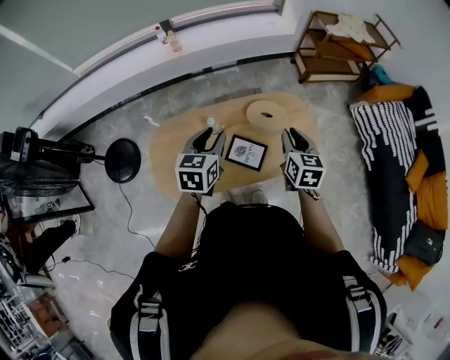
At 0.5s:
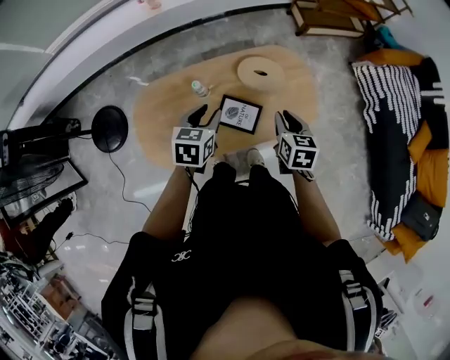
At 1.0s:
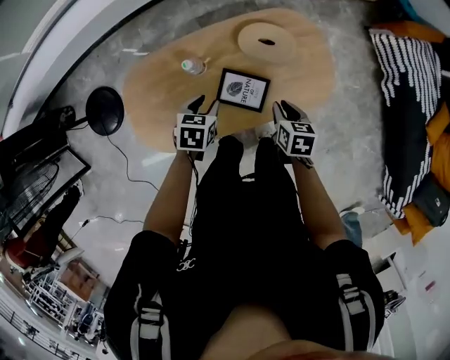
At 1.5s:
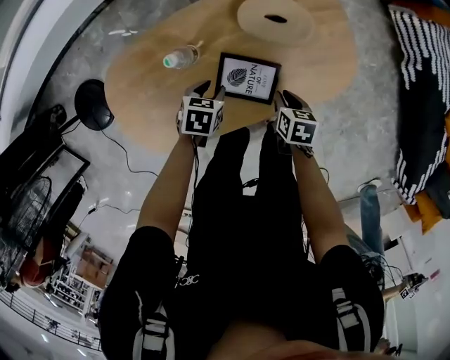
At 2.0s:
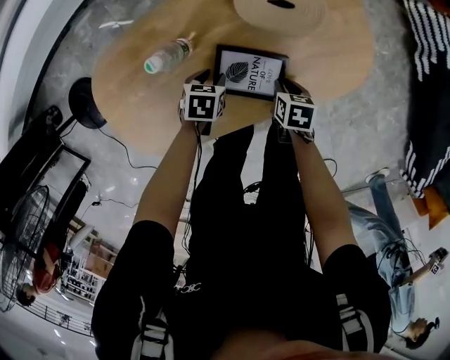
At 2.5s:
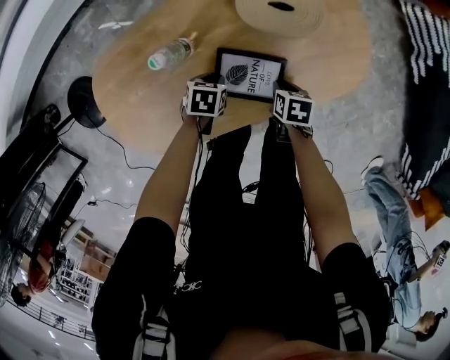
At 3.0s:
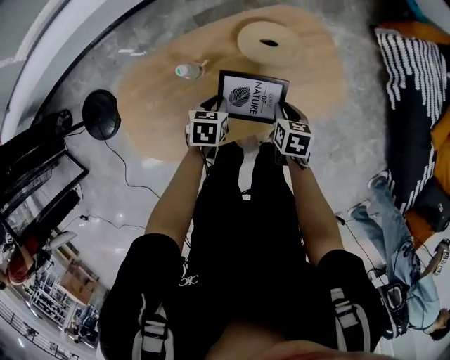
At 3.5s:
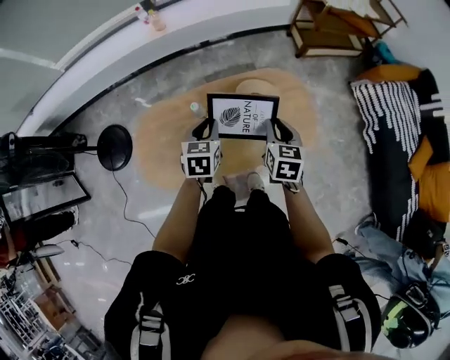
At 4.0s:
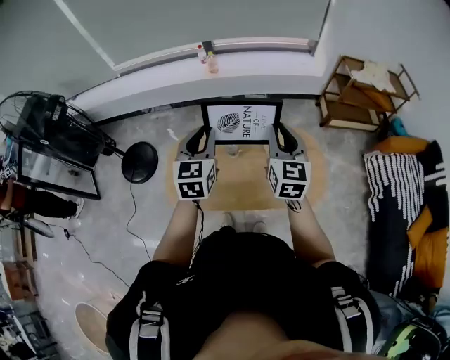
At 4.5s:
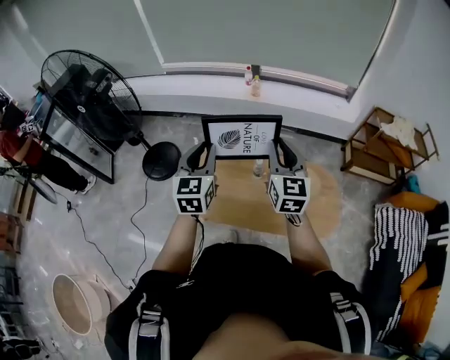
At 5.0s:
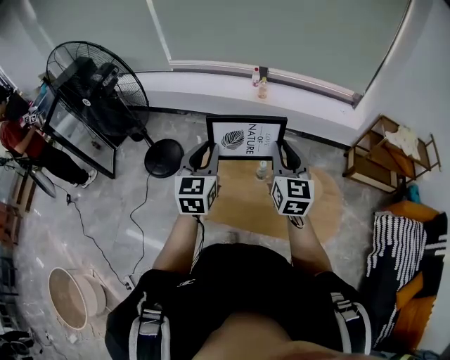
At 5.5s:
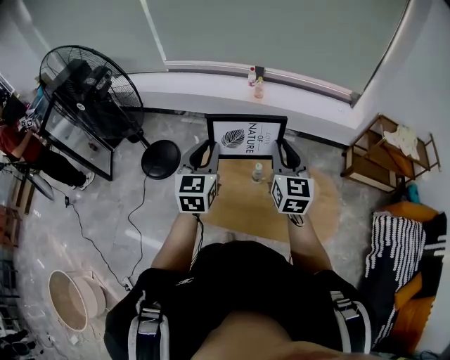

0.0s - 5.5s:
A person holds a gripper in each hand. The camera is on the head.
0.0s - 2.0s: The two grippers go approximately 60 cm downward. The left gripper tilts its fingers approximately 40 degrees downward; the right gripper points its fingers approximately 40 degrees further downward.
2.0s - 3.5s: Both grippers move upward, roughly 50 cm. The right gripper points its fingers approximately 30 degrees further upward. Meanwhile the left gripper angles its fingers upward, by approximately 30 degrees.
3.5s - 5.5s: The two grippers go roughly 30 cm upward. The right gripper points its fingers some 30 degrees further upward. Meanwhile the left gripper swivels roughly 40 degrees.

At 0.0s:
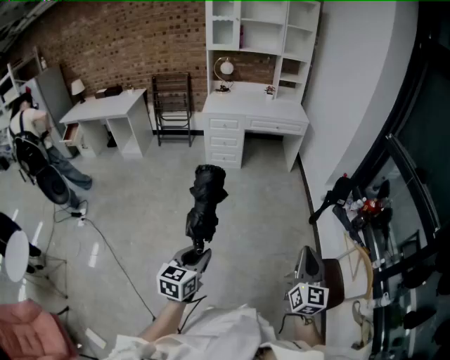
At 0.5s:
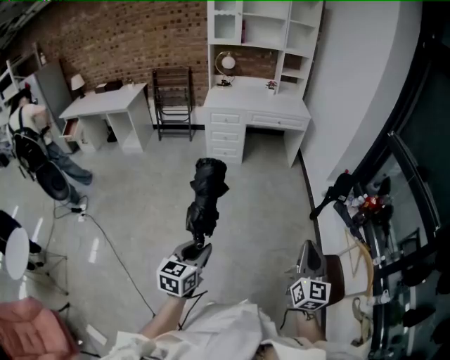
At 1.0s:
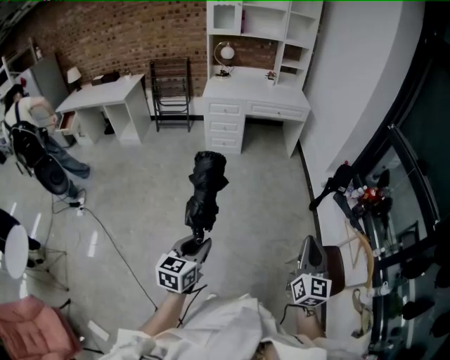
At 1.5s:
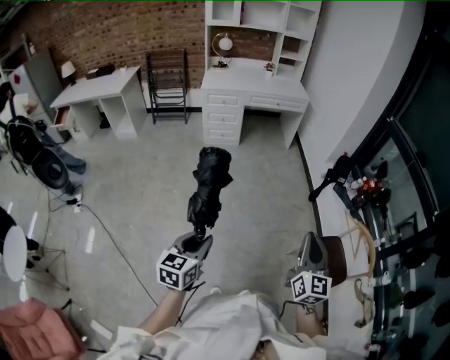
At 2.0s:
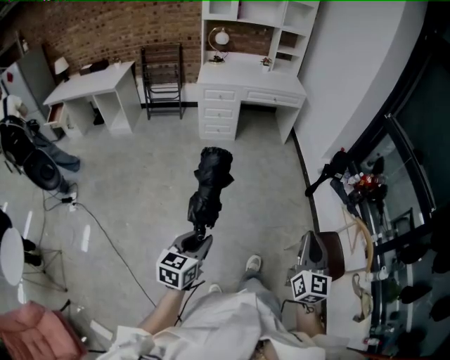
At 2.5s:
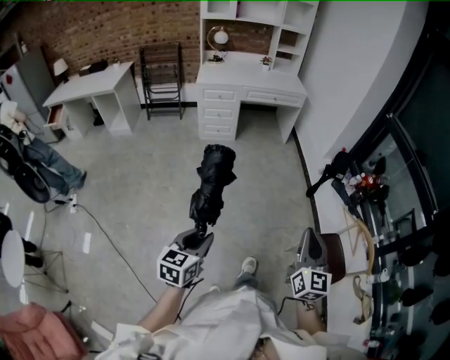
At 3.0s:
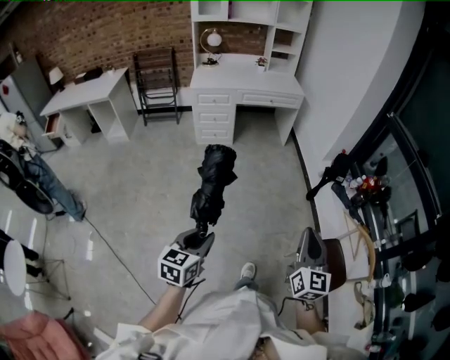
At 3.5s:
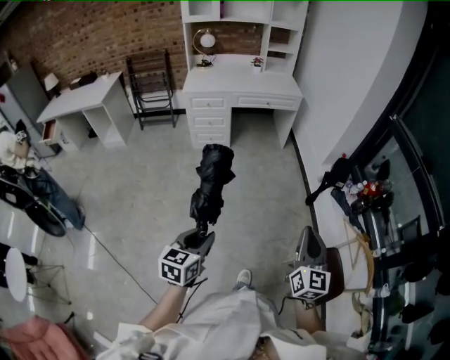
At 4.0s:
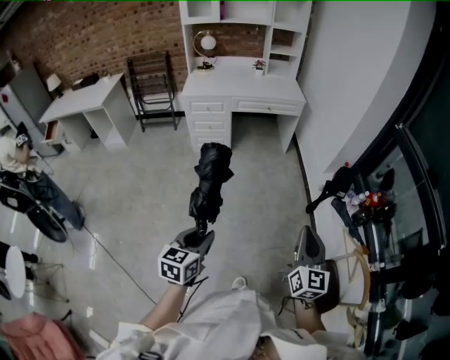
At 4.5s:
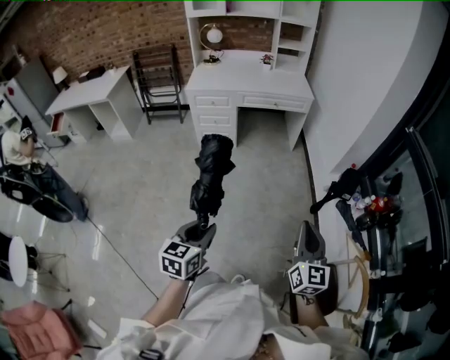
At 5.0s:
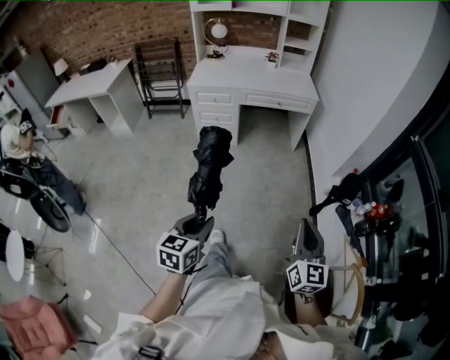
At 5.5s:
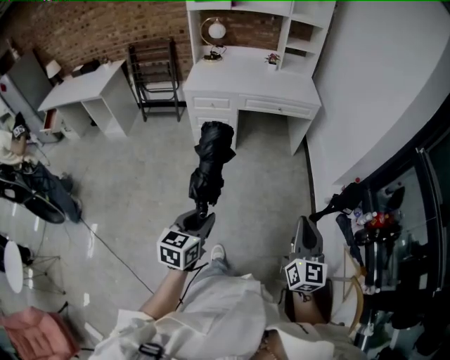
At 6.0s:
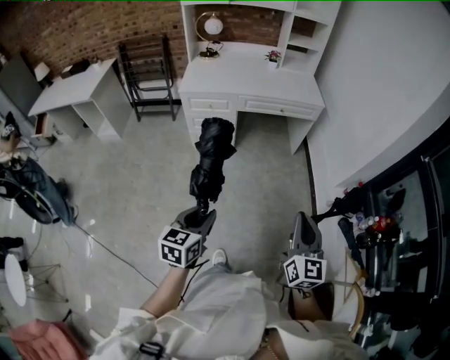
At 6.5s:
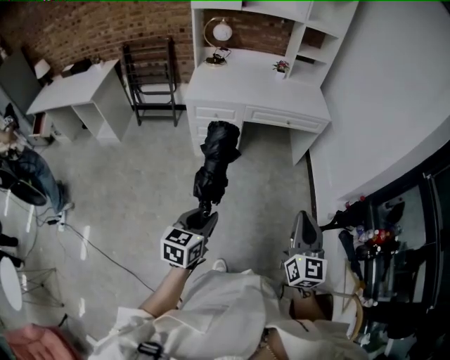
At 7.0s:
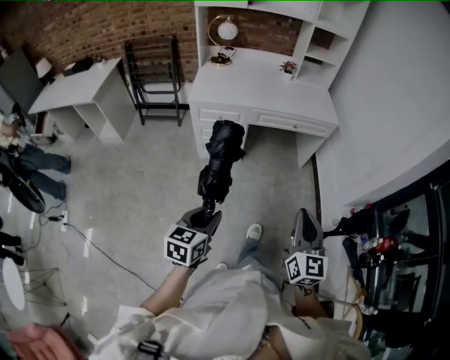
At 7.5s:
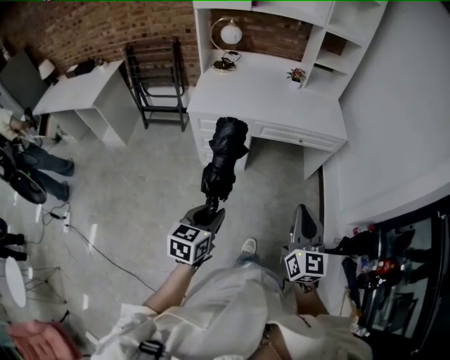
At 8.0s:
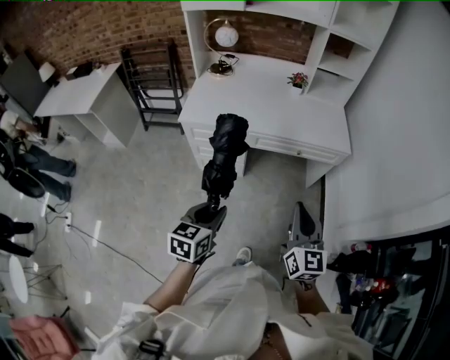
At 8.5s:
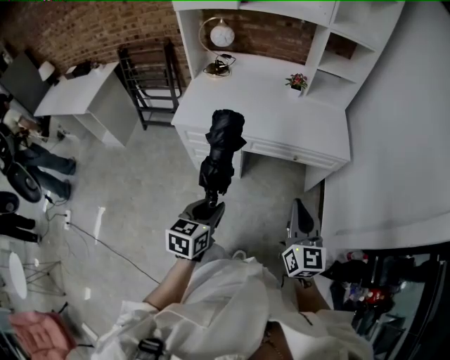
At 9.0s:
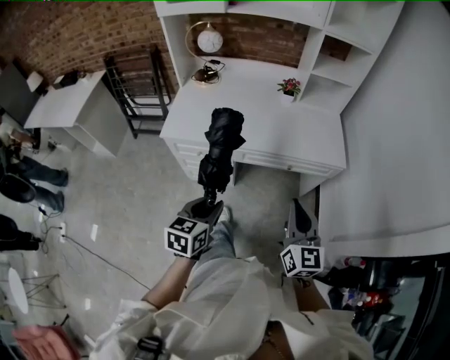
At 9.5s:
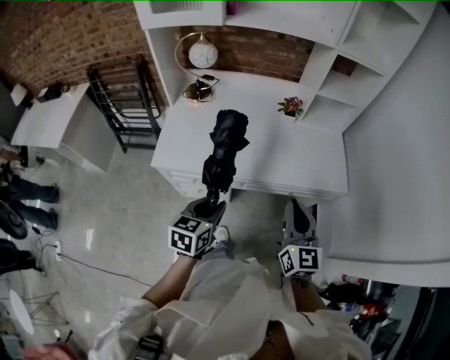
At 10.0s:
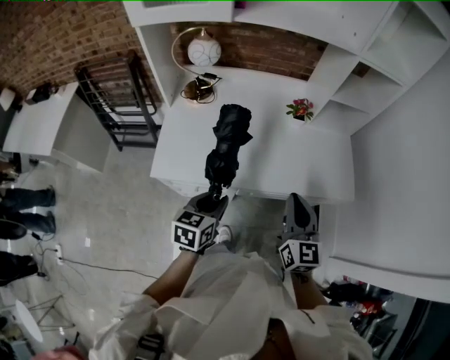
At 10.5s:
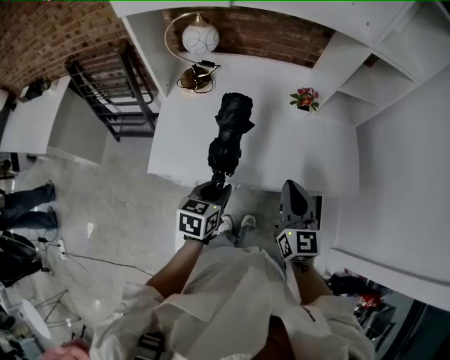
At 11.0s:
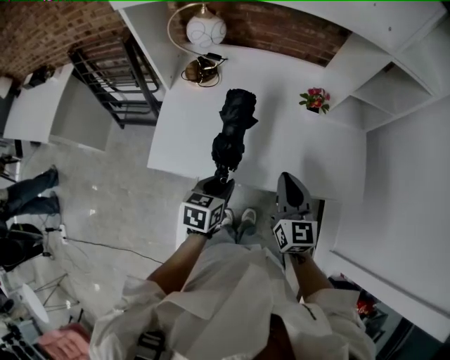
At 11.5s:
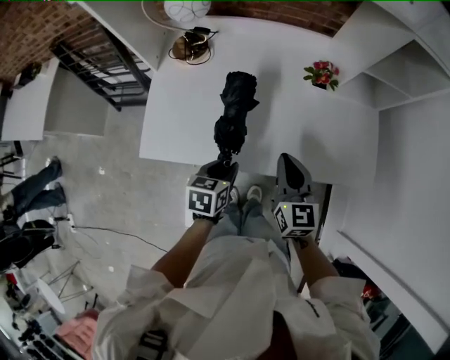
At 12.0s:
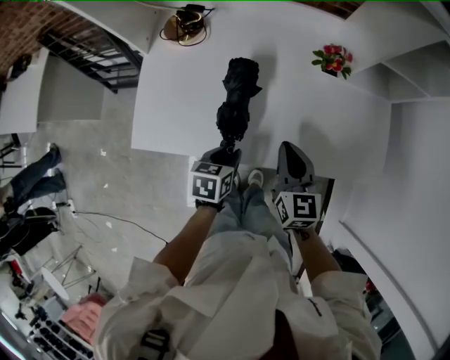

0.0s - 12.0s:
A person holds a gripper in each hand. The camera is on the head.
0.0s - 2.0s: The two grippers go some 5 cm to the left.
2.0s - 4.0s: Both grippers travel together forward, approximately 30 cm.
4.0s - 6.0s: The right gripper shifts roughly 30 cm forward and to the left, while the left gripper heads forward, covering roughly 30 cm.
6.0s - 8.0s: The grippers both shift forward by about 40 cm.
8.0s - 10.0s: The two grippers travel together, forward, approximately 40 cm.
10.0s - 12.0s: The two grippers go about 25 cm downward and forward. The left gripper turns by some 20 degrees.

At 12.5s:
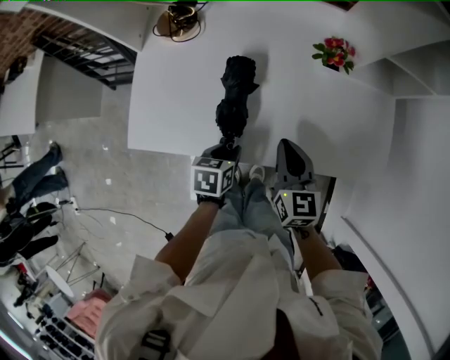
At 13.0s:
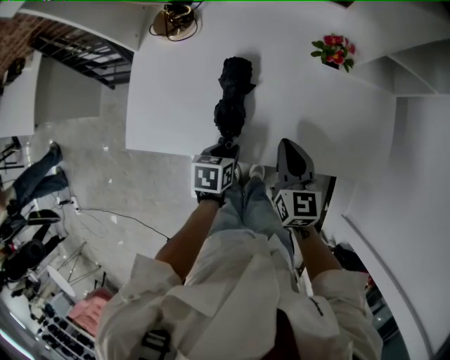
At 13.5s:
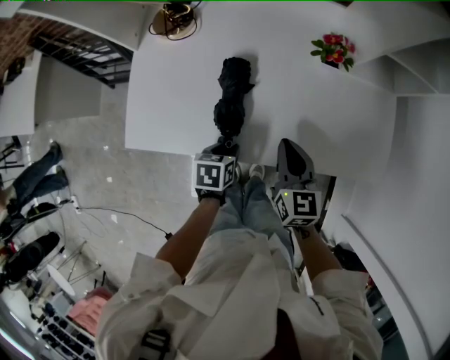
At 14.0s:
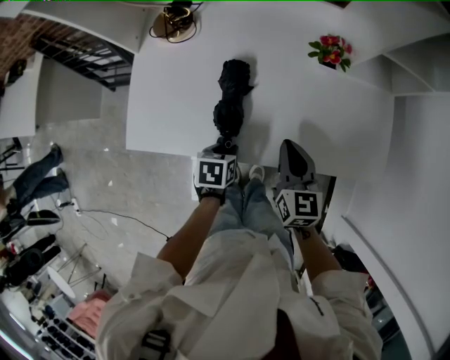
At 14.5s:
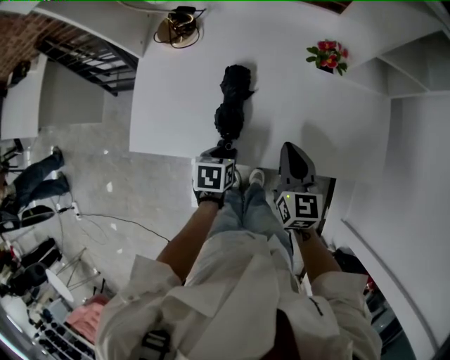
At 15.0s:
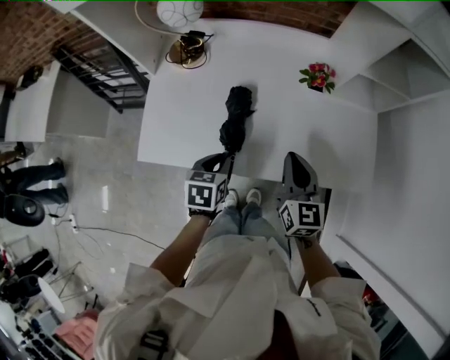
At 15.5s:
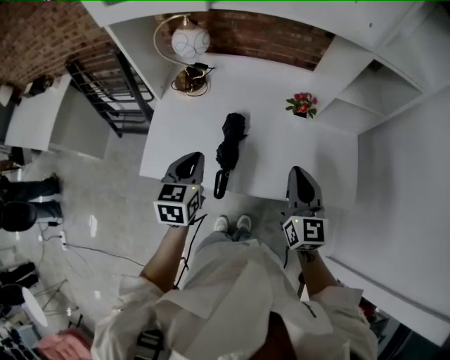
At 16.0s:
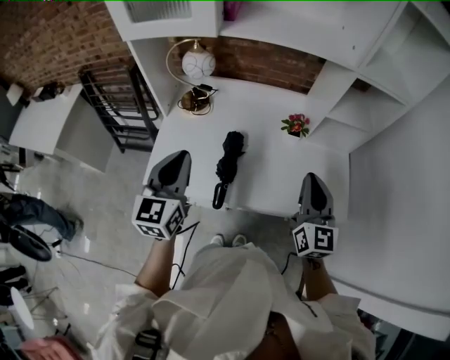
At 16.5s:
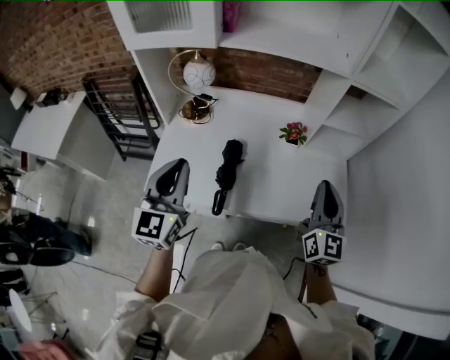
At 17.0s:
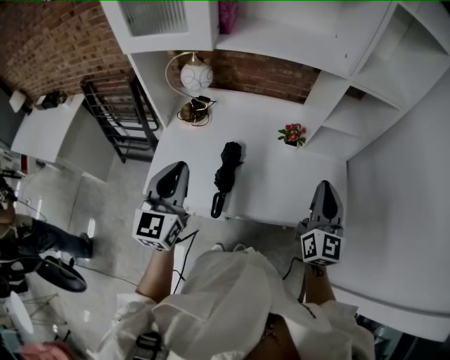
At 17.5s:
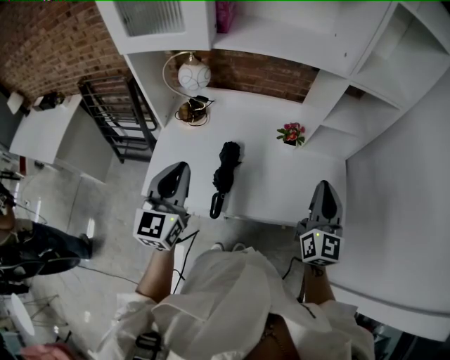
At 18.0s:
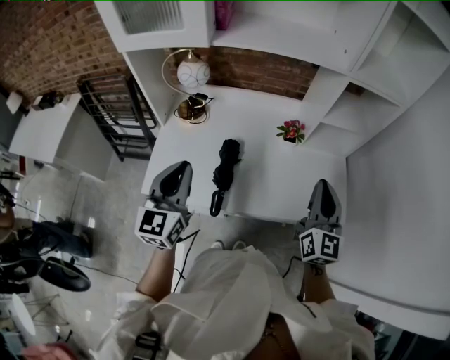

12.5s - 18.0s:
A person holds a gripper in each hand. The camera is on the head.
12.5s - 14.5s: The grippers move only a little.
14.5s - 16.0s: The right gripper travels upward by approximately 25 cm, and swivels about 20 degrees; the left gripper travels upward by some 40 cm, points its fingers approximately 50 degrees further upward, and closes.
16.0s - 18.0s: The right gripper moves roughly 5 cm.

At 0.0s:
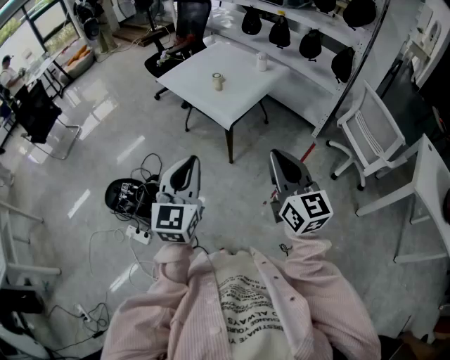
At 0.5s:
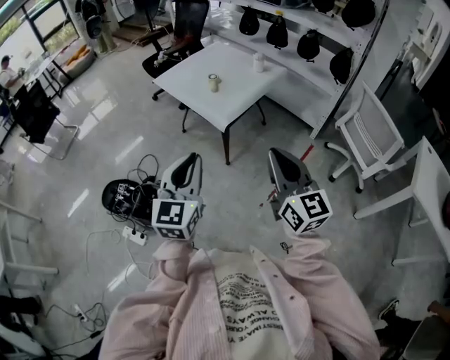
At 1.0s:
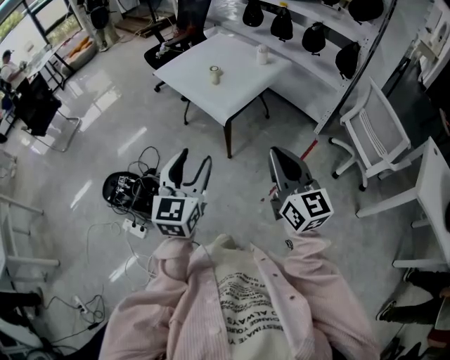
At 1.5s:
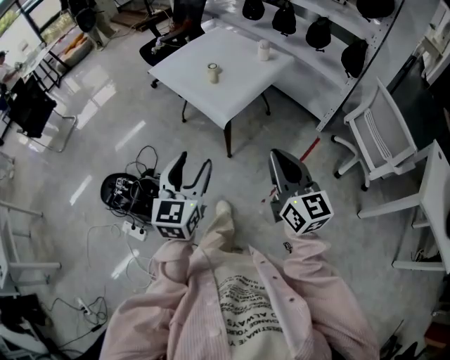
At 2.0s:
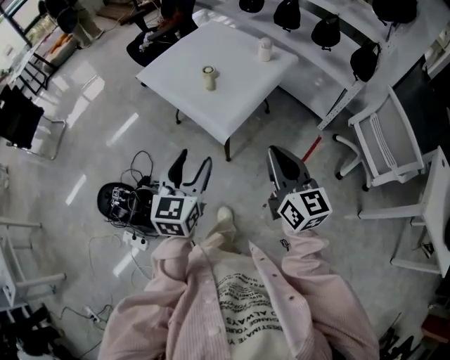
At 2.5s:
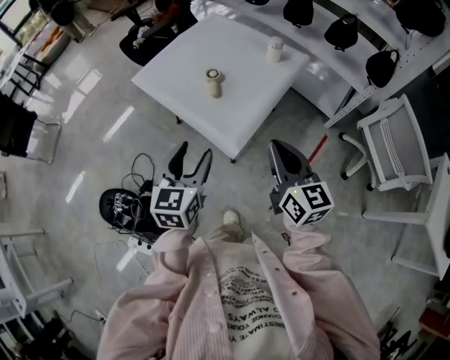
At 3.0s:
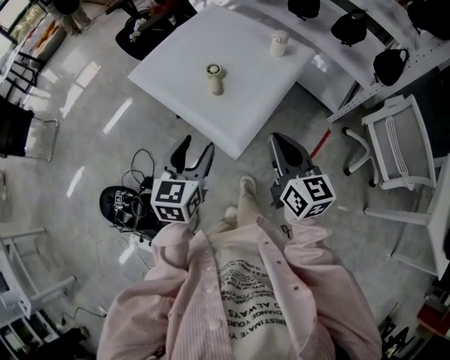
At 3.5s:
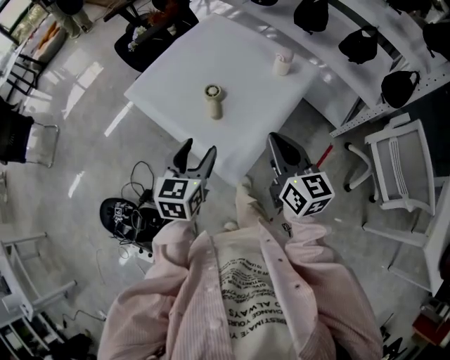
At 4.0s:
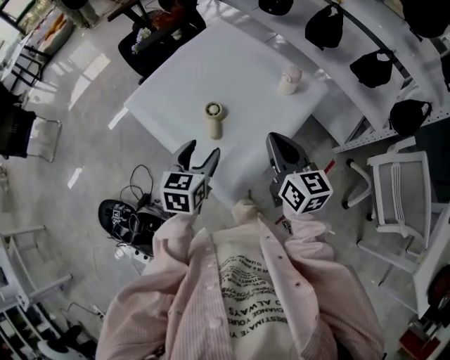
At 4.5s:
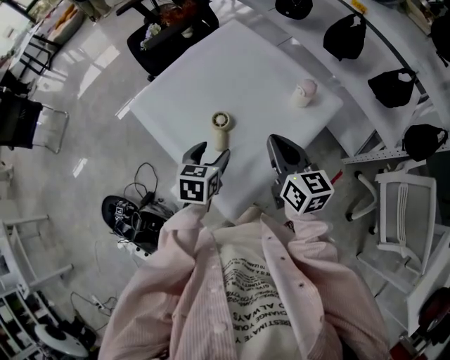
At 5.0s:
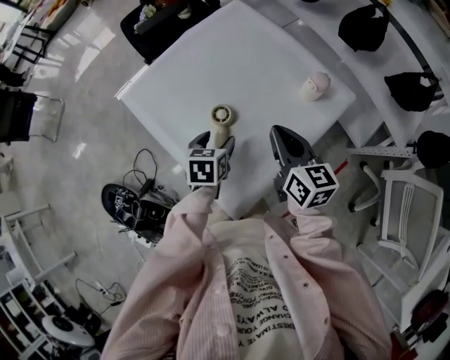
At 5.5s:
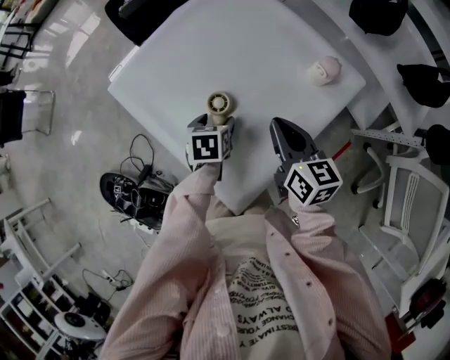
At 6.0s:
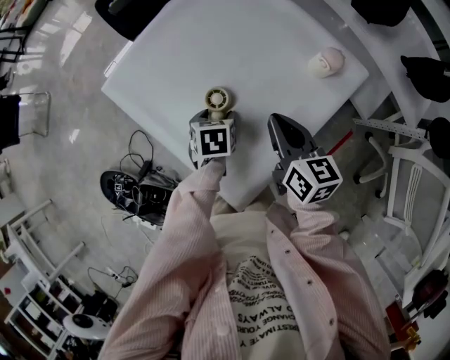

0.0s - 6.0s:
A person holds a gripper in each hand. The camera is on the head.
0.0s - 2.0s: The left gripper goes roughly 25 cm forward and downward, and opens up. Meanwhile the right gripper goes approximately 20 cm forward.
2.0s - 4.0s: The grippers both shift forward by about 35 cm.
4.0s - 6.0s: The two grippers go approximately 20 cm downward and forward. The left gripper angles its fingers downward, by some 30 degrees.
